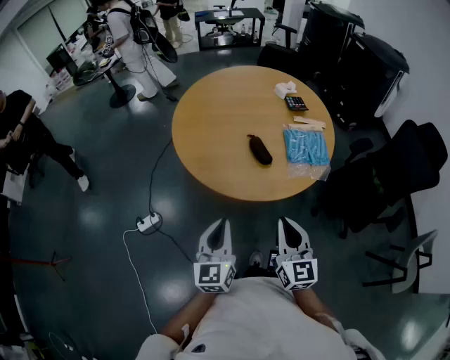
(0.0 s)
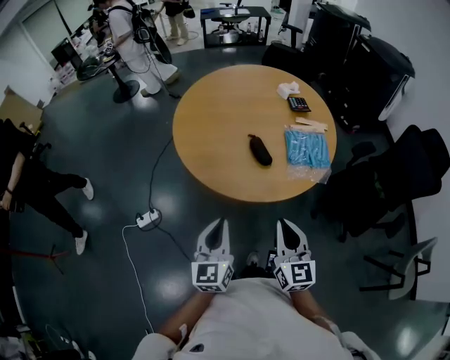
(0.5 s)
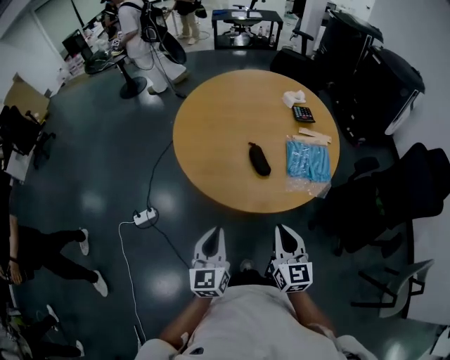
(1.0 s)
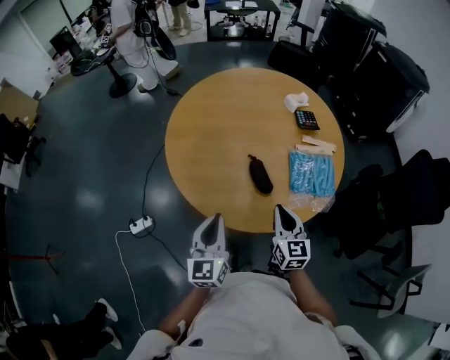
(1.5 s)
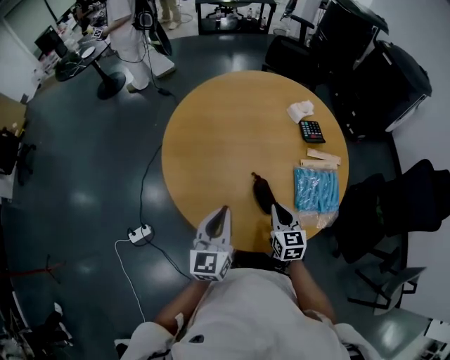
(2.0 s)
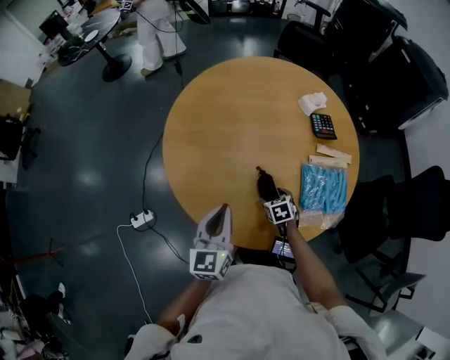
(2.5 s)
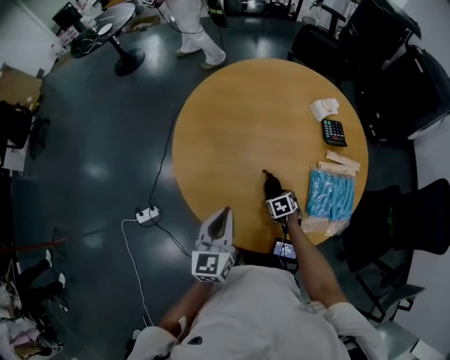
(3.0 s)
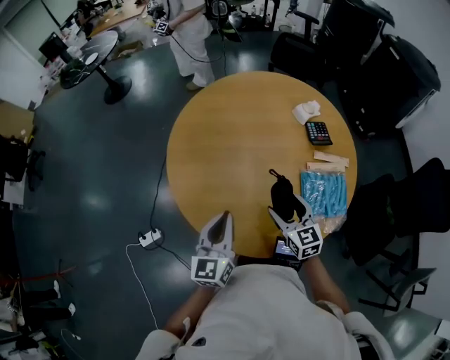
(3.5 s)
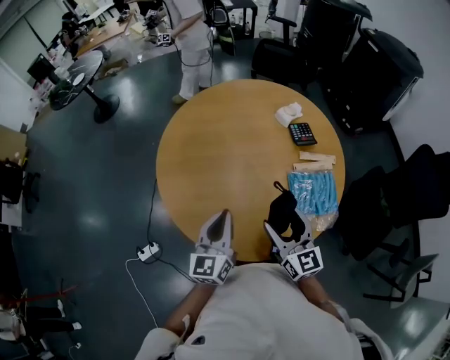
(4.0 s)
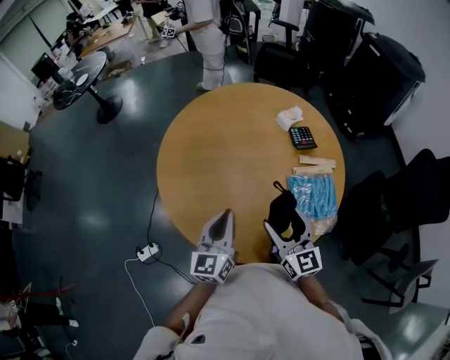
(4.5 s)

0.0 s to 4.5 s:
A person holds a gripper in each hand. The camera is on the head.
0.0 to 2.0 s: The left gripper travels forward by roughly 30 cm; the right gripper shifts roughly 35 cm forward and downward, and swivels approximately 20 degrees.
2.0 to 4.5 s: The left gripper travels to the right by approximately 5 cm; the right gripper goes roughly 15 cm upward, changes its angle by some 20 degrees, and opens.

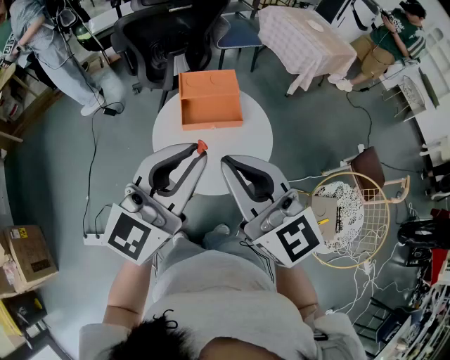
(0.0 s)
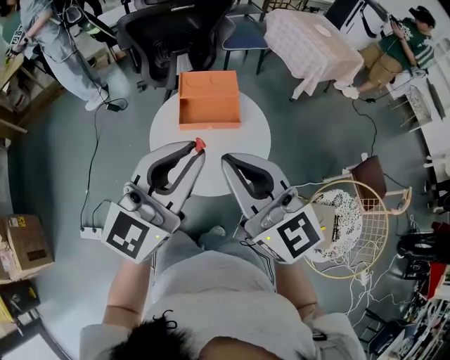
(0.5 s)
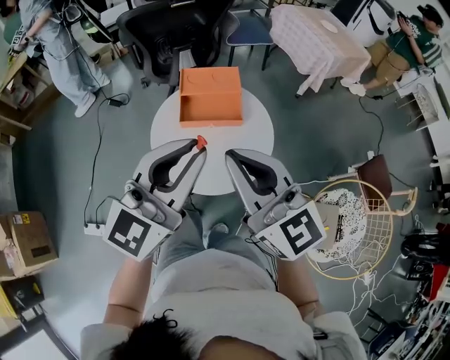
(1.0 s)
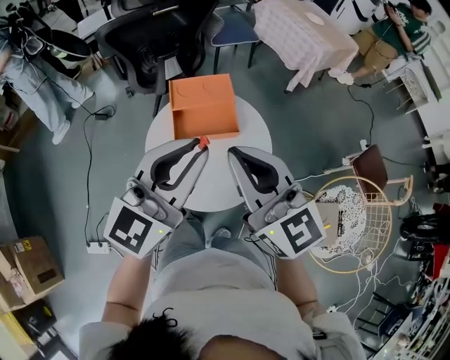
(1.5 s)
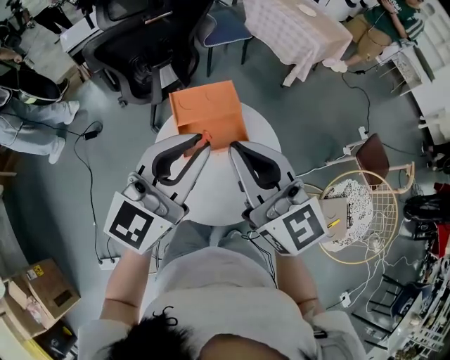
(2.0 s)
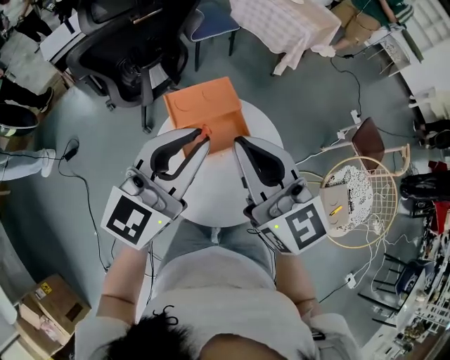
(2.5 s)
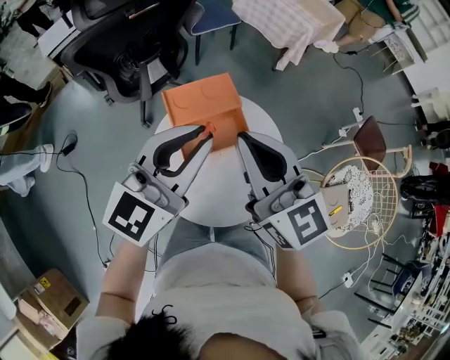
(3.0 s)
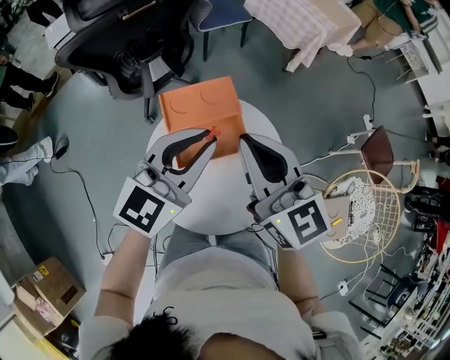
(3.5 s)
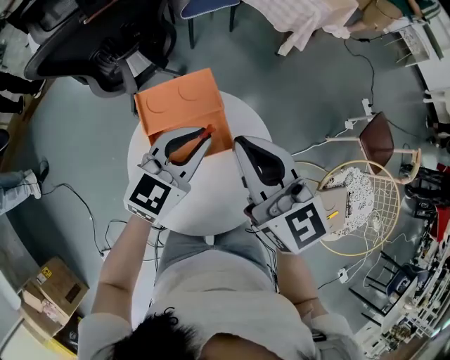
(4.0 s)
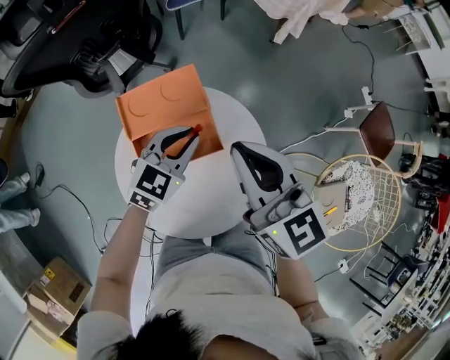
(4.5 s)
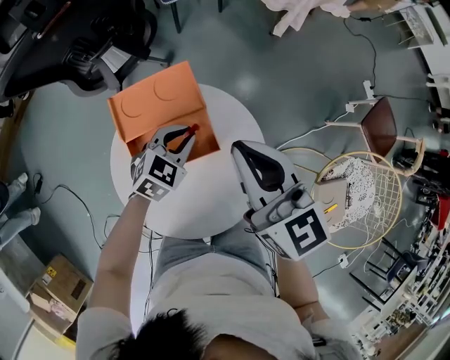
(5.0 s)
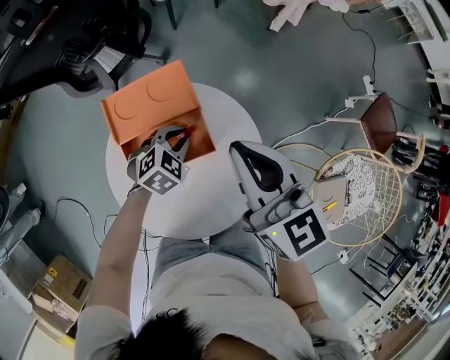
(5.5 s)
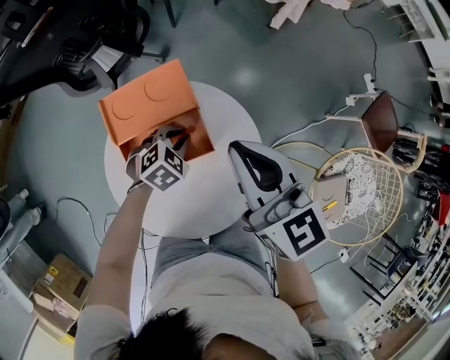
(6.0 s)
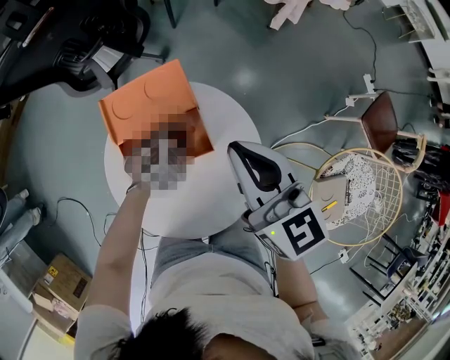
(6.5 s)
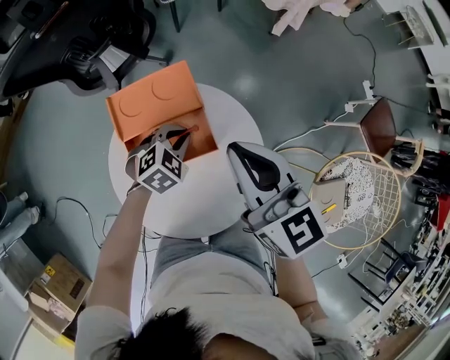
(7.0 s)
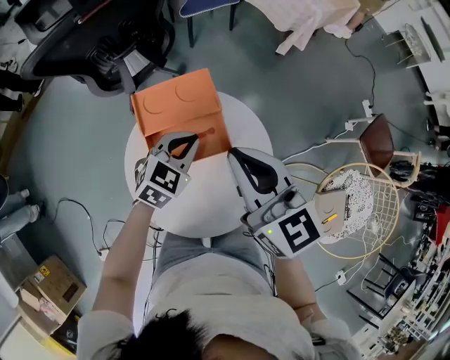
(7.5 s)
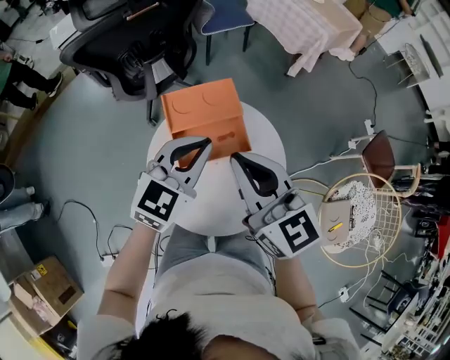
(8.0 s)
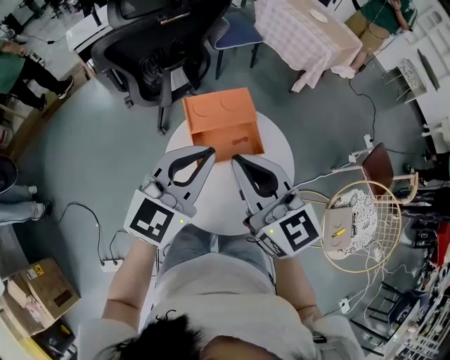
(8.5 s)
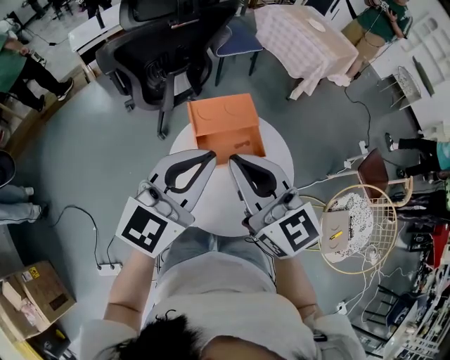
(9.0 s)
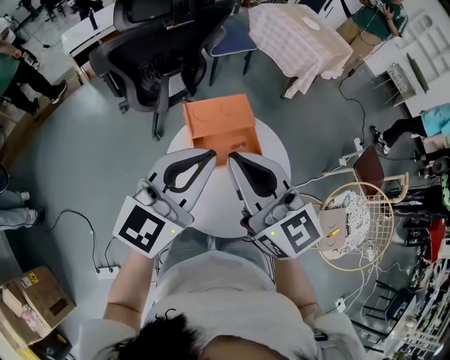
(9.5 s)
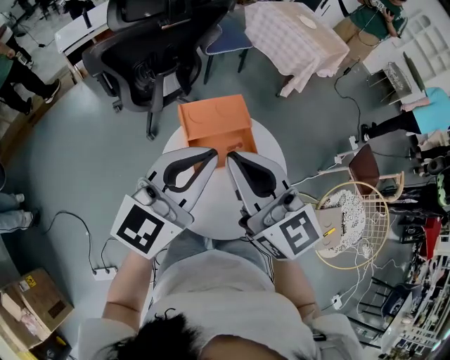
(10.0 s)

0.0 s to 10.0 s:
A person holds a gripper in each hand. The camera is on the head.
0.0 to 2.0 s: Both grippers travel together forward, about 15 cm.
2.0 to 4.0 s: The left gripper heads downward and forward, covering about 20 cm, and swivels approximately 20 degrees. The right gripper heads forward, downward and to the right, covering some 15 cm.
4.0 to 6.0 s: The right gripper goes some 10 cm downward and to the right. Meanwhile the left gripper heads downward, covering approximately 25 cm, and tips its fingers downward by some 40 degrees.
6.0 to 8.0 s: The right gripper is displaced to the left, backward and upward by roughly 15 cm. The left gripper is displaced upward by about 25 cm, and tilts its fingers about 40 degrees upward.
8.0 to 10.0 s: The right gripper goes about 10 cm to the left and upward, while the left gripper goes approximately 15 cm upward, to the left and backward, and changes its angle by roughly 20 degrees.

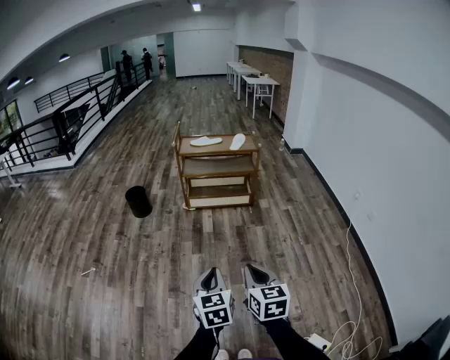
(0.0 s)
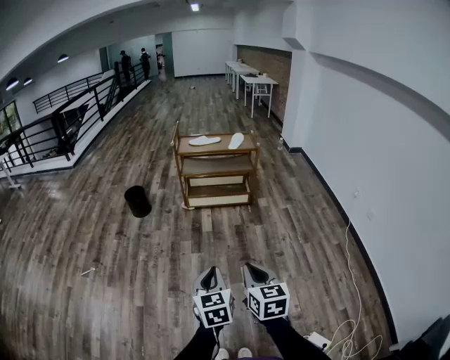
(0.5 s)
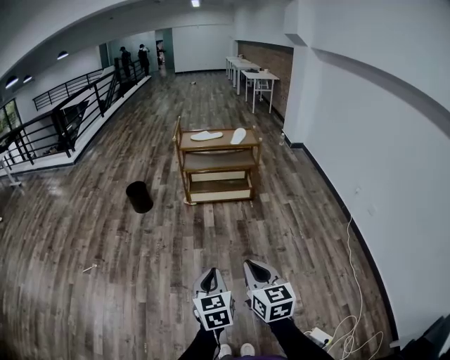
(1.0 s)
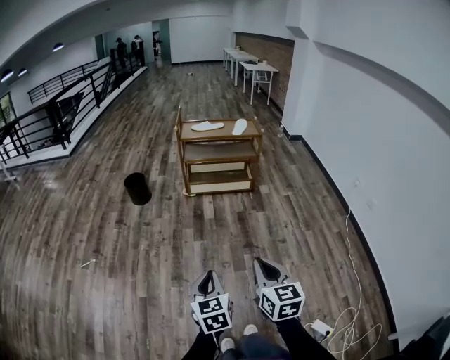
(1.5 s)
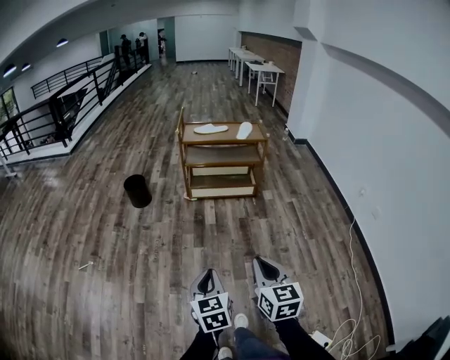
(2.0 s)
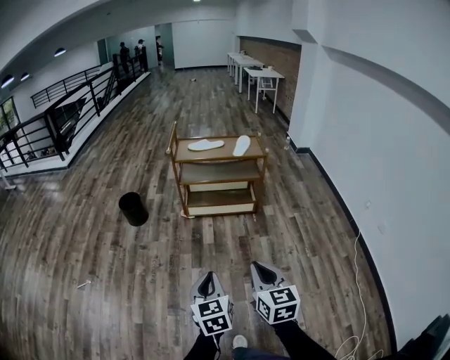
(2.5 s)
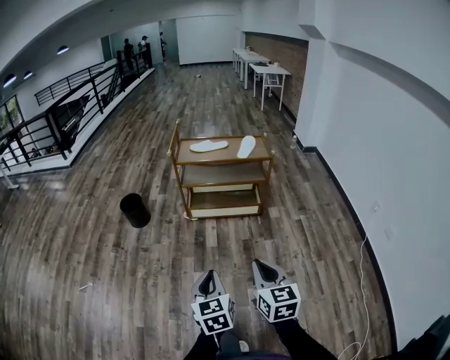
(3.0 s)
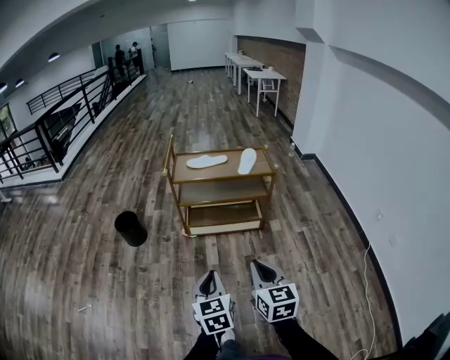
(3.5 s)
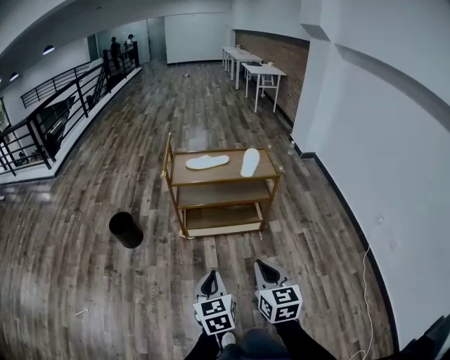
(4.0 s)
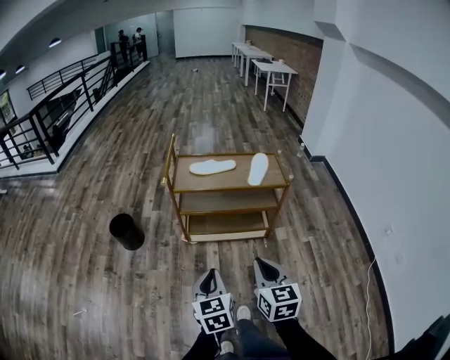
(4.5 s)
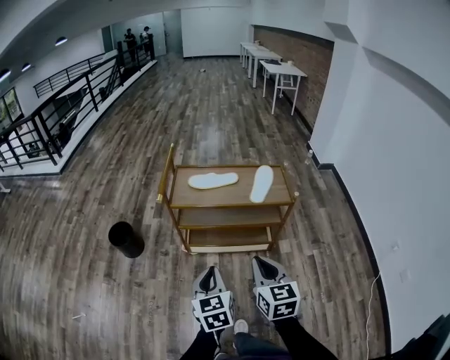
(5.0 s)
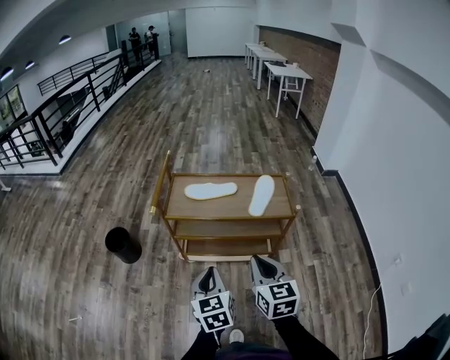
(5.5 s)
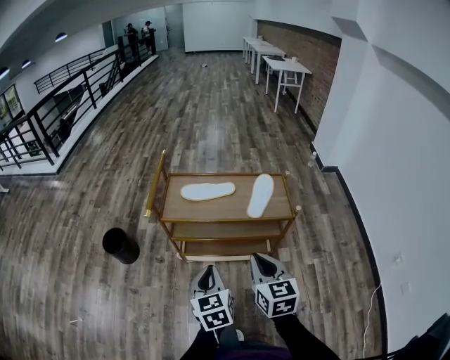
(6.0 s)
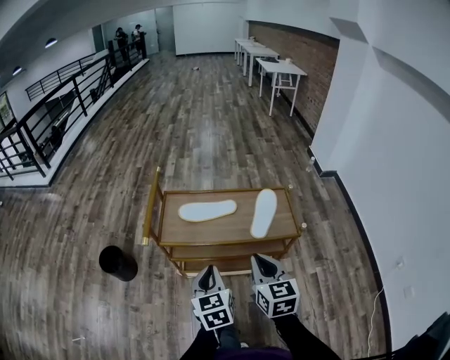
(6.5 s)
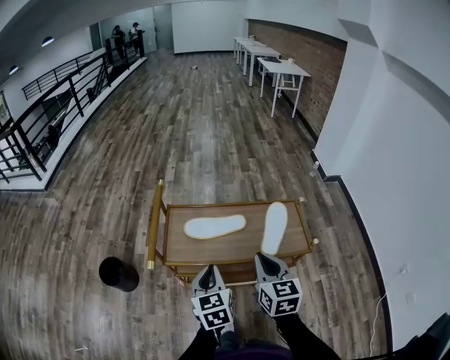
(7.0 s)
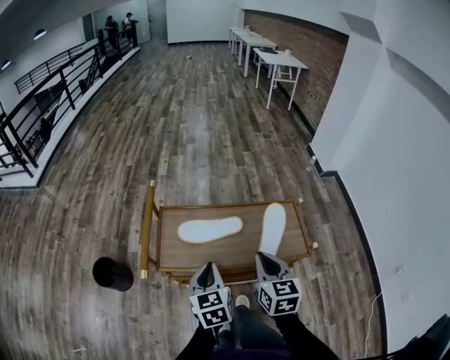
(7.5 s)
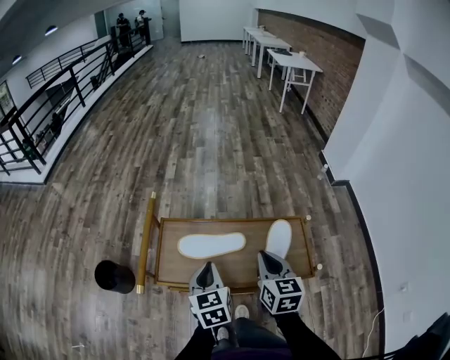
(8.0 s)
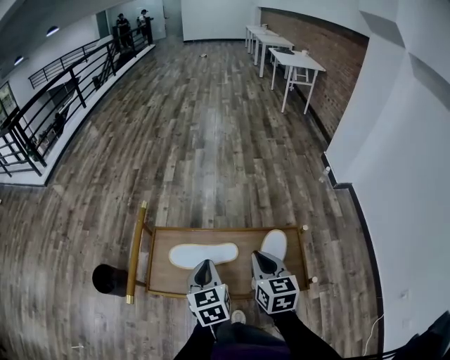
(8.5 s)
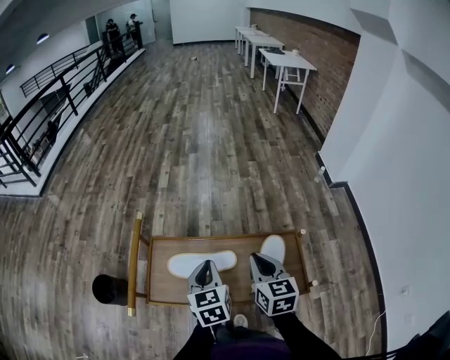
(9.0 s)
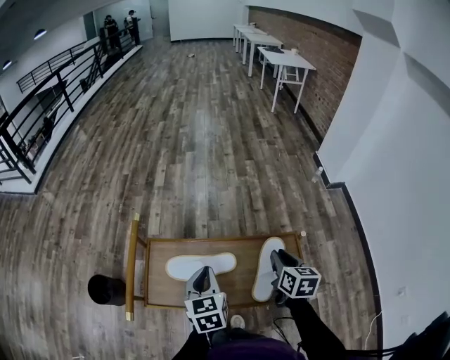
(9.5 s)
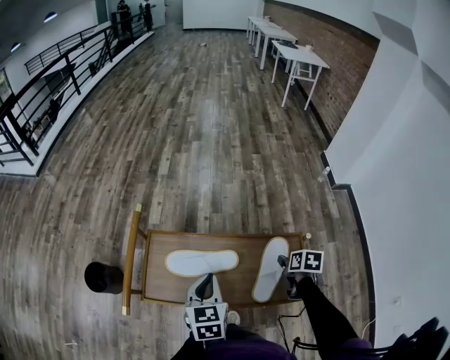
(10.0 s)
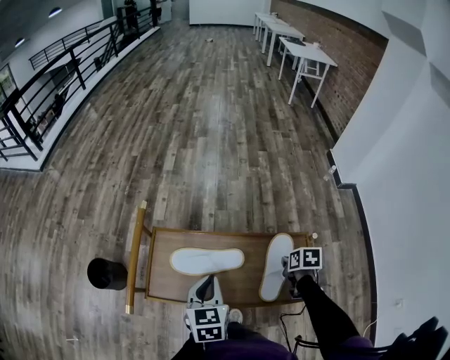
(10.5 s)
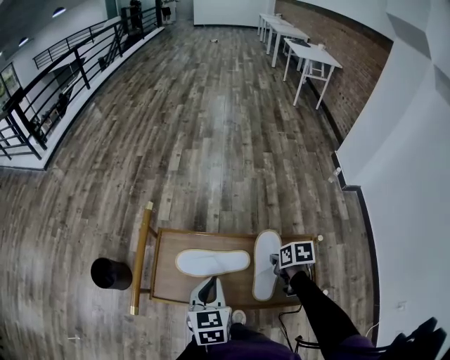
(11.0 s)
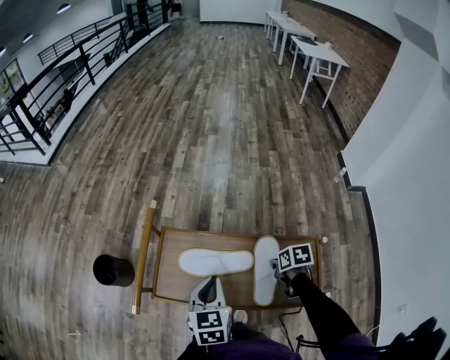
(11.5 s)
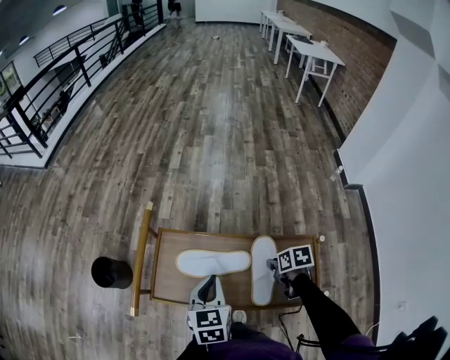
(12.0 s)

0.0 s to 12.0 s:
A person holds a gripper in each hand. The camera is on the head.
0.0 to 2.0 s: The left gripper heads to the left, covering some 5 cm; the right gripper moves forward, about 5 cm.
2.0 to 4.0 s: The pair of grippers is taken forward, some 40 cm.
4.0 to 6.0 s: The two grippers go approximately 30 cm forward.
6.0 to 8.0 s: The grippers both shift forward by about 30 cm.
8.0 to 10.0 s: The right gripper heads to the right, downward and forward, covering about 25 cm, points its fingers some 40 degrees further downward, and opens its fingers; the left gripper shifts about 5 cm forward.
10.0 to 12.0 s: The right gripper goes some 10 cm to the left, turns by about 20 degrees, and closes its fingers.
